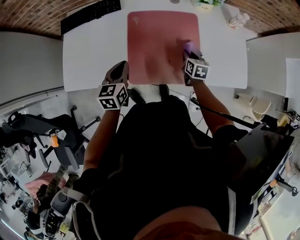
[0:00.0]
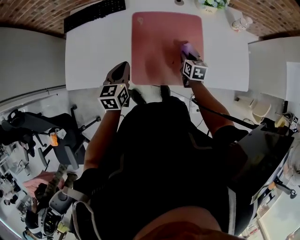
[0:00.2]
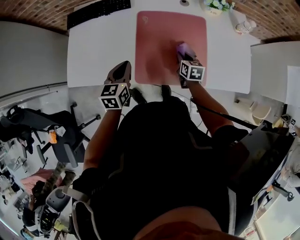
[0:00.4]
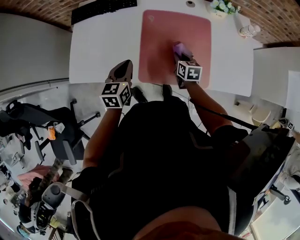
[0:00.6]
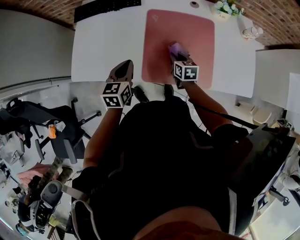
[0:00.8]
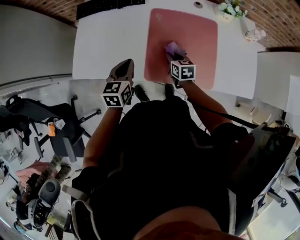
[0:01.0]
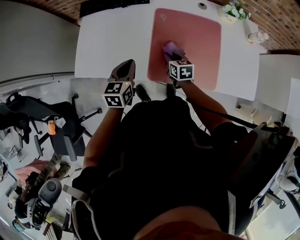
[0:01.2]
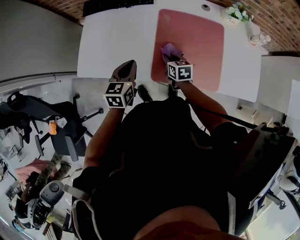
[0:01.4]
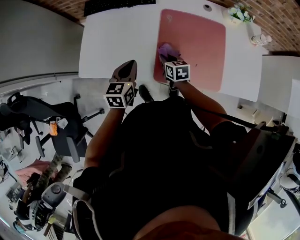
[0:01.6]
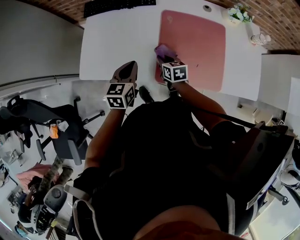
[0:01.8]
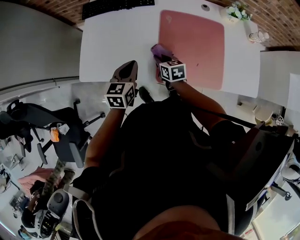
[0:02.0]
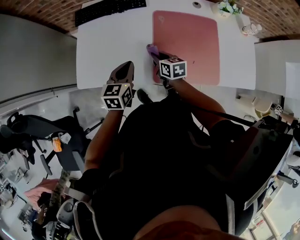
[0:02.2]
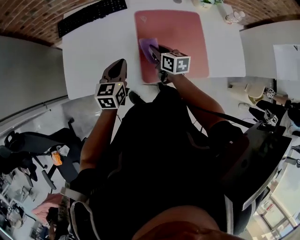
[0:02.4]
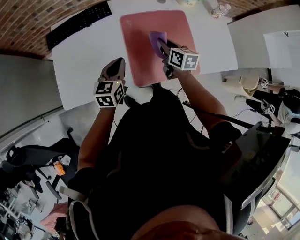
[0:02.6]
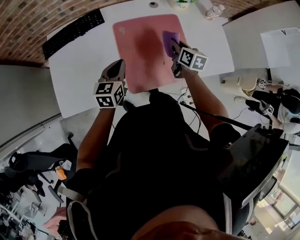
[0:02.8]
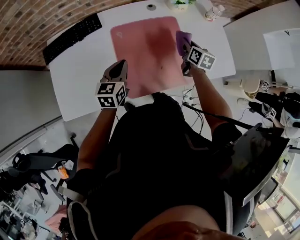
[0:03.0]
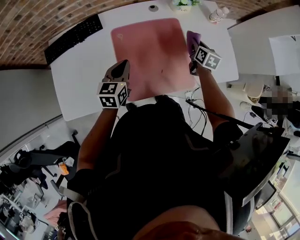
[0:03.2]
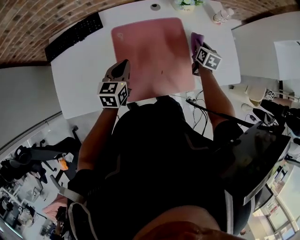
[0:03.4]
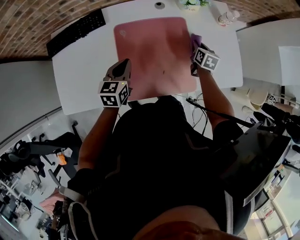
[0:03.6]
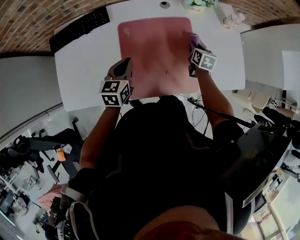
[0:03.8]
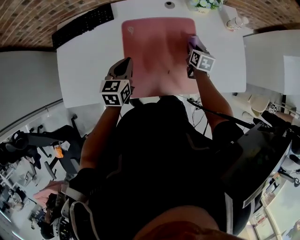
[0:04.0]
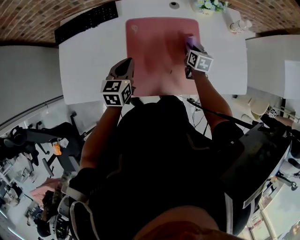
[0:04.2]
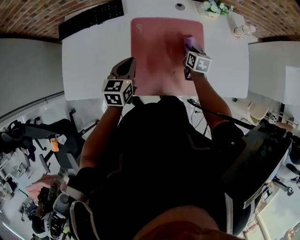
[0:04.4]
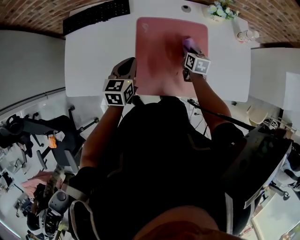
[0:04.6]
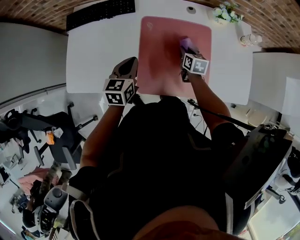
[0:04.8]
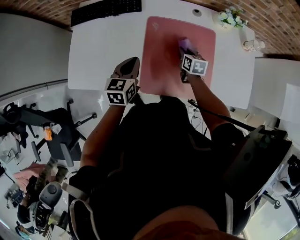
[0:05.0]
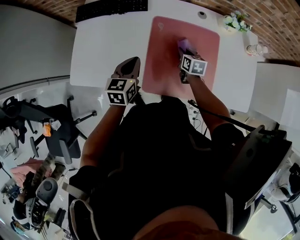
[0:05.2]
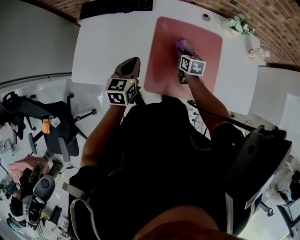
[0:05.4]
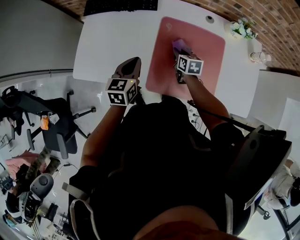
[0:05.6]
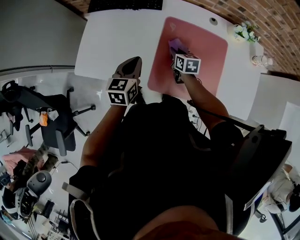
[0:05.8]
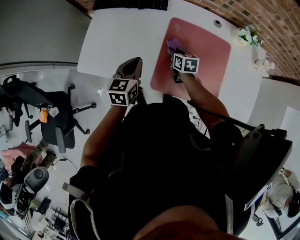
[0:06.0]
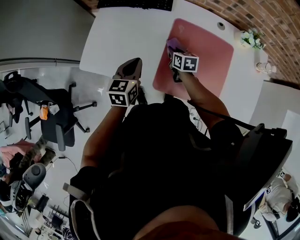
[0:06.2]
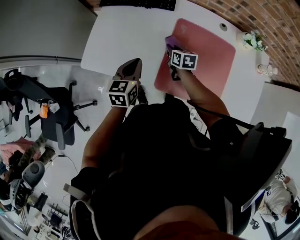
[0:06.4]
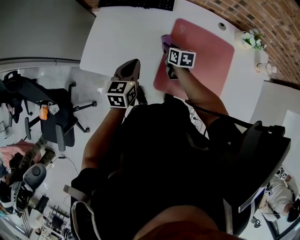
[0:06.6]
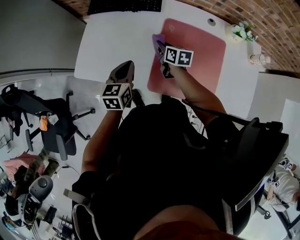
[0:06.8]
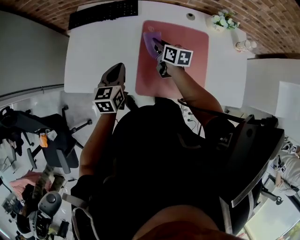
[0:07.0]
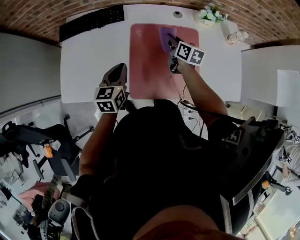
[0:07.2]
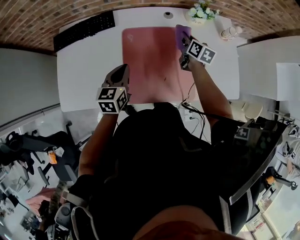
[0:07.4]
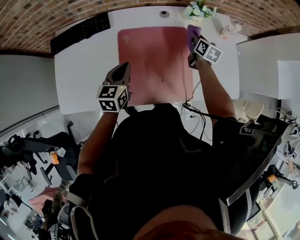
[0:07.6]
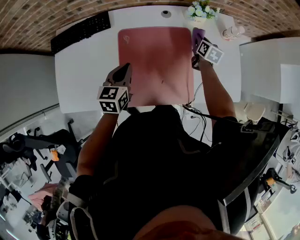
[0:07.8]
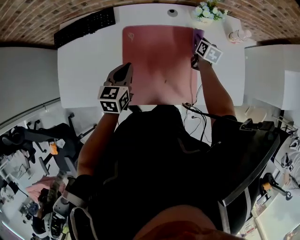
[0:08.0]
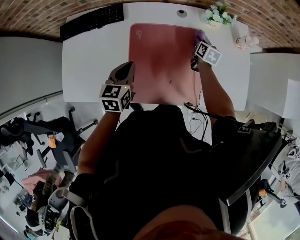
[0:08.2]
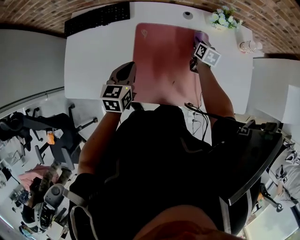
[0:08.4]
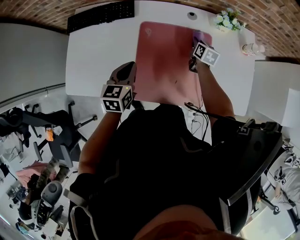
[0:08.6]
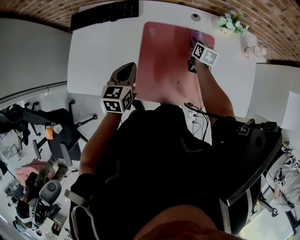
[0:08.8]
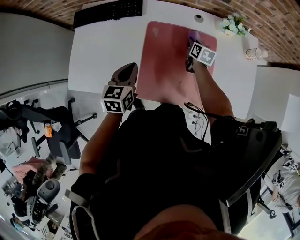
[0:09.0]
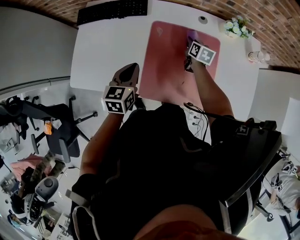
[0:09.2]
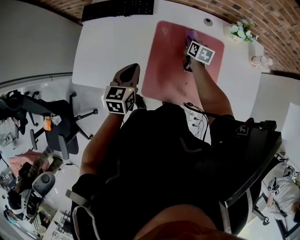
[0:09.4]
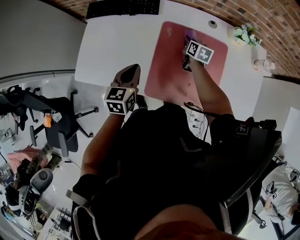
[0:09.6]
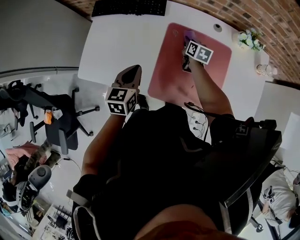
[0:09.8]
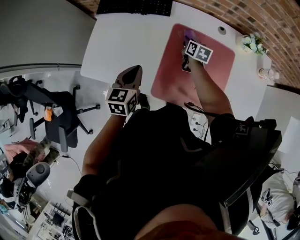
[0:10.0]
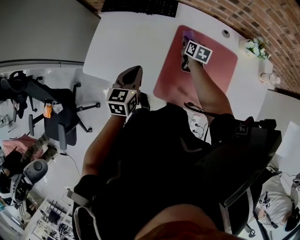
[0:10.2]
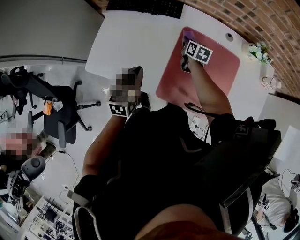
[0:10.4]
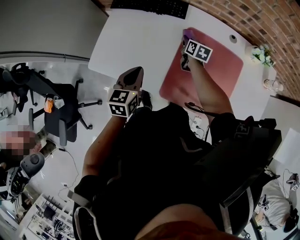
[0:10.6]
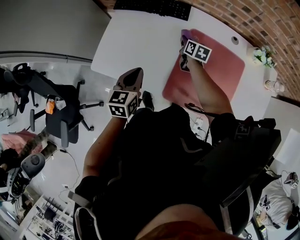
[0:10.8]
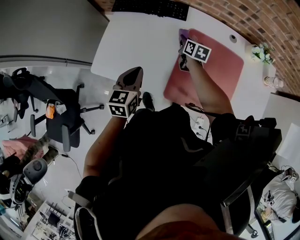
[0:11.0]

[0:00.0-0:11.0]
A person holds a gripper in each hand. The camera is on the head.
0:00.0 to 0:01.6: The left gripper moves to the left, about 10 cm, while the right gripper heads to the left, covering approximately 25 cm, and rotates approximately 20 degrees.
0:01.6 to 0:03.2: The right gripper ends up about 40 cm from where it was, and turns by approximately 40 degrees, while the left gripper shifts by about 20 cm, and changes its angle by roughly 20 degrees.
0:03.2 to 0:04.8: The right gripper is displaced to the left by about 20 cm, and turns by approximately 30 degrees. Meanwhile the left gripper moves to the left, about 5 cm.
0:04.8 to 0:06.2: The left gripper is displaced to the left by about 10 cm, while the right gripper is displaced to the left by roughly 20 cm, and changes its angle by approximately 20 degrees.
0:06.2 to 0:07.8: The right gripper moves about 40 cm, and swivels about 40 degrees, while the left gripper ends up some 20 cm from where it was, and rotates about 20 degrees.
0:07.8 to 0:09.4: The left gripper shifts roughly 10 cm to the left and backward, while the right gripper shifts some 25 cm to the left, and changes its angle by roughly 20 degrees.
0:09.4 to 0:11.0: The right gripper heads to the left, covering roughly 20 cm, while the left gripper heads to the left, covering approximately 10 cm.

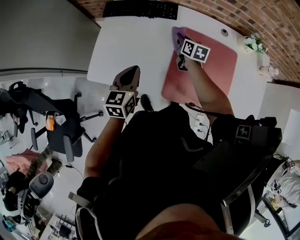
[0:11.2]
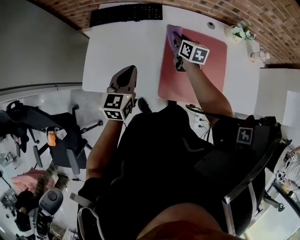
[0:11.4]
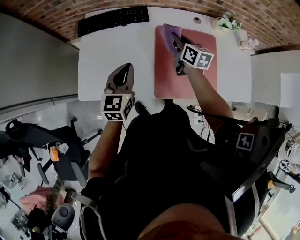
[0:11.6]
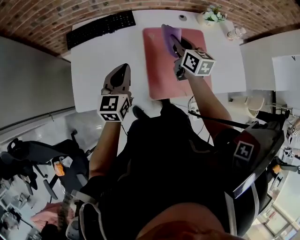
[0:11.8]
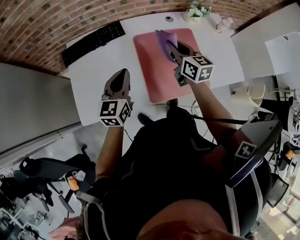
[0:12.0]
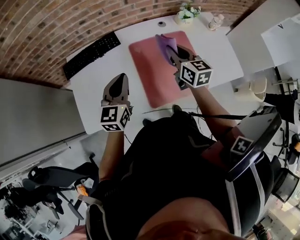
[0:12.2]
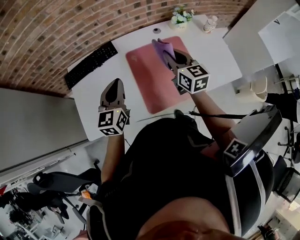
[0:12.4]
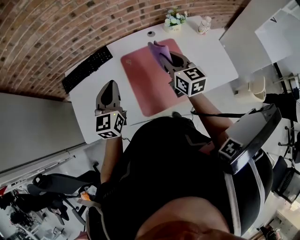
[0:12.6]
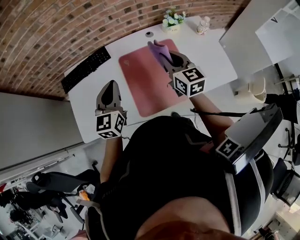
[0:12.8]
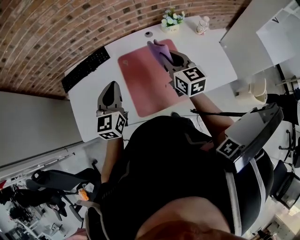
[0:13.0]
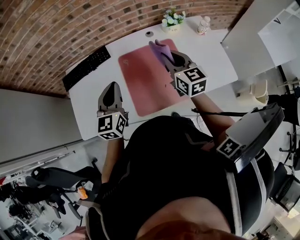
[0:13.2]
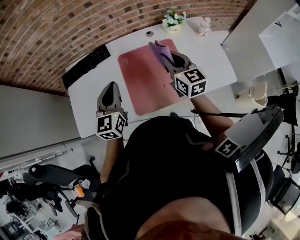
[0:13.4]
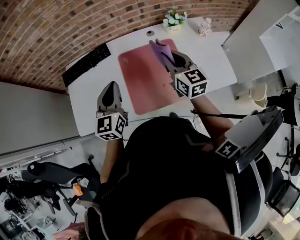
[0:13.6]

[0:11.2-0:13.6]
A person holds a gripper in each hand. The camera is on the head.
0:11.2 to 0:12.4: The right gripper travels upward, to the right and backward by some 30 cm, and turns by approximately 30 degrees. The left gripper travels upward, to the right and forward by about 15 cm, and swivels roughly 30 degrees.
0:12.4 to 0:13.6: Both grippers travel together to the right, some 5 cm.

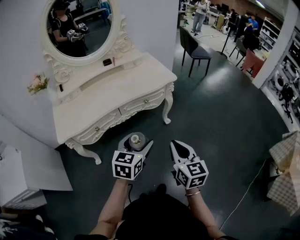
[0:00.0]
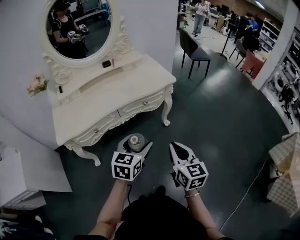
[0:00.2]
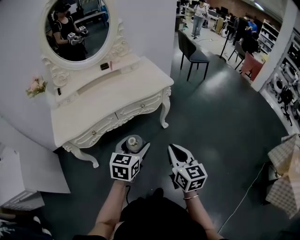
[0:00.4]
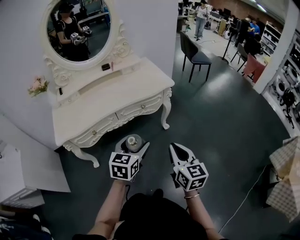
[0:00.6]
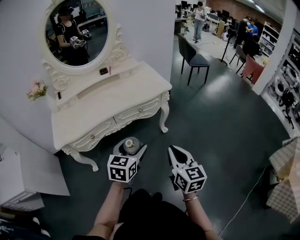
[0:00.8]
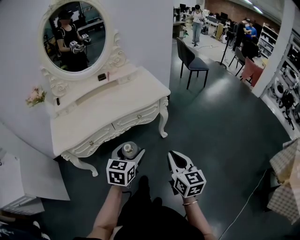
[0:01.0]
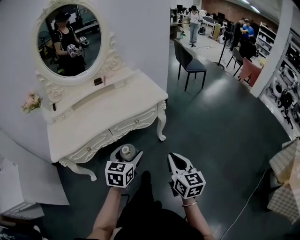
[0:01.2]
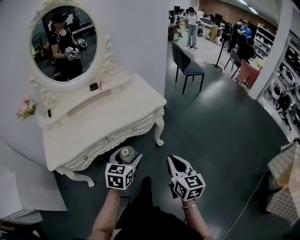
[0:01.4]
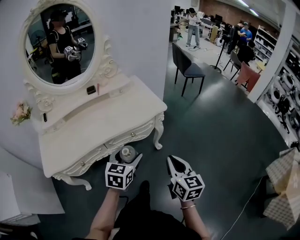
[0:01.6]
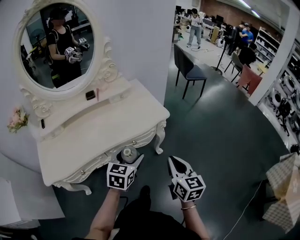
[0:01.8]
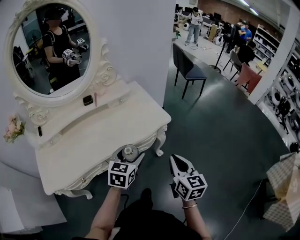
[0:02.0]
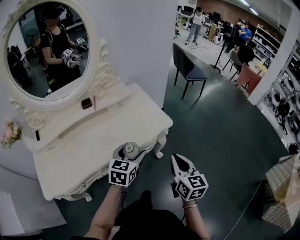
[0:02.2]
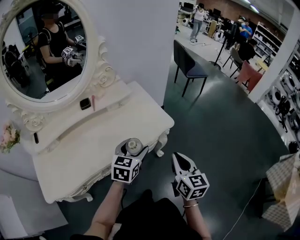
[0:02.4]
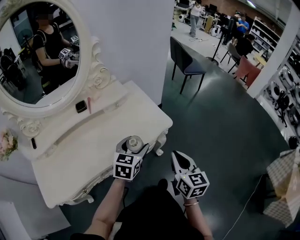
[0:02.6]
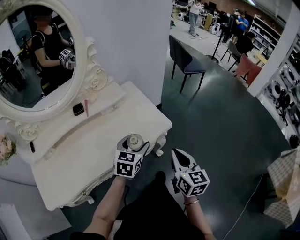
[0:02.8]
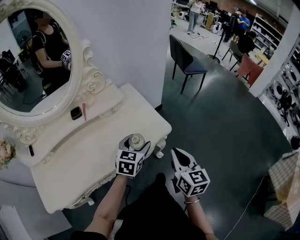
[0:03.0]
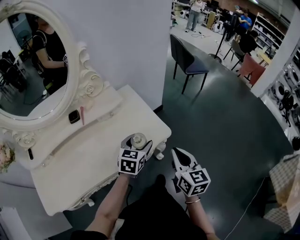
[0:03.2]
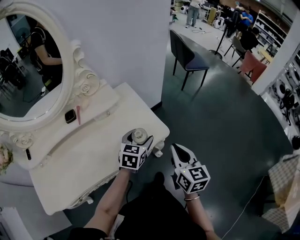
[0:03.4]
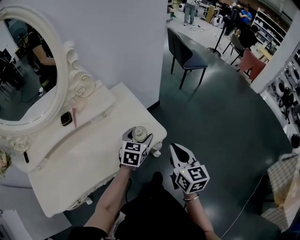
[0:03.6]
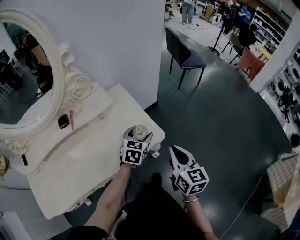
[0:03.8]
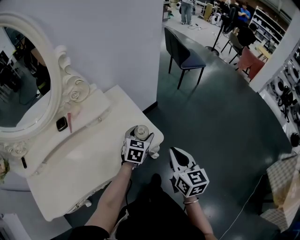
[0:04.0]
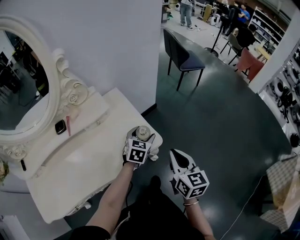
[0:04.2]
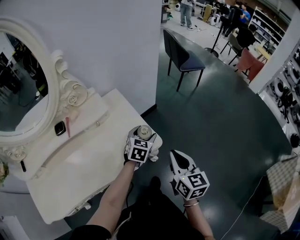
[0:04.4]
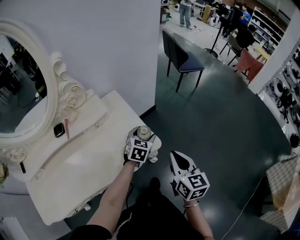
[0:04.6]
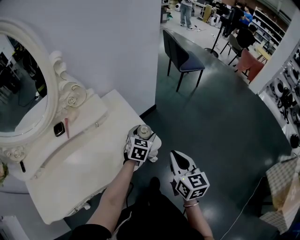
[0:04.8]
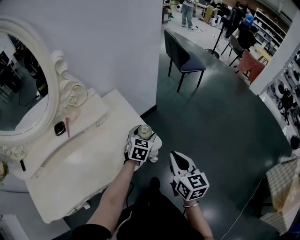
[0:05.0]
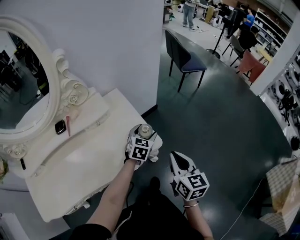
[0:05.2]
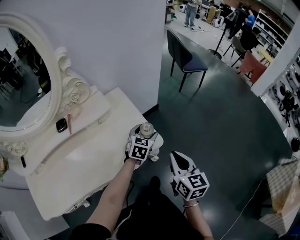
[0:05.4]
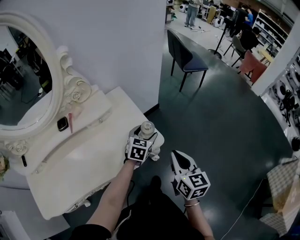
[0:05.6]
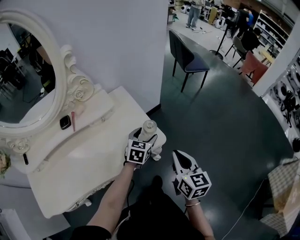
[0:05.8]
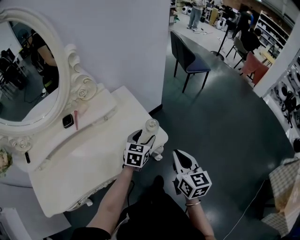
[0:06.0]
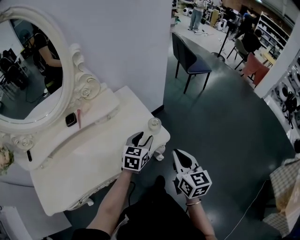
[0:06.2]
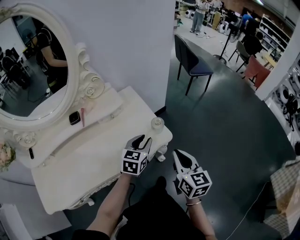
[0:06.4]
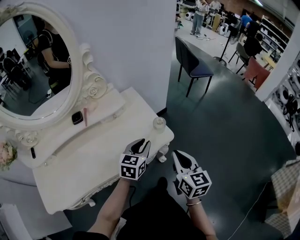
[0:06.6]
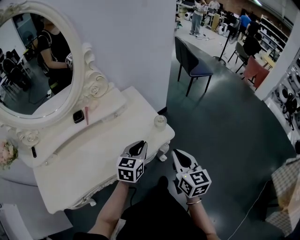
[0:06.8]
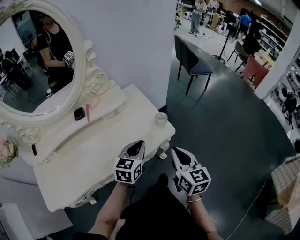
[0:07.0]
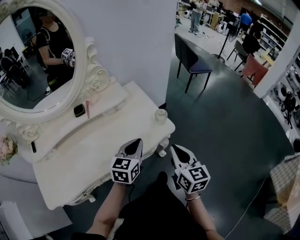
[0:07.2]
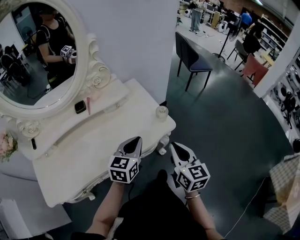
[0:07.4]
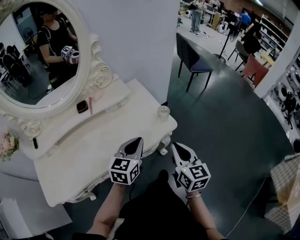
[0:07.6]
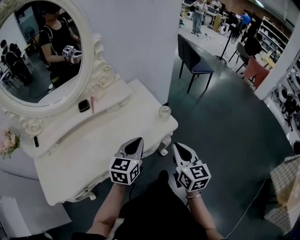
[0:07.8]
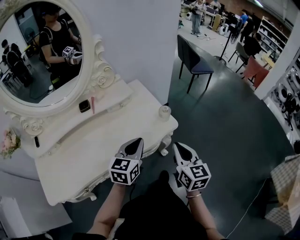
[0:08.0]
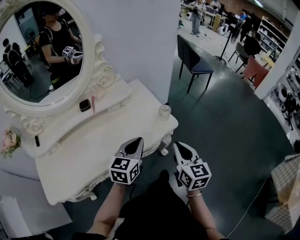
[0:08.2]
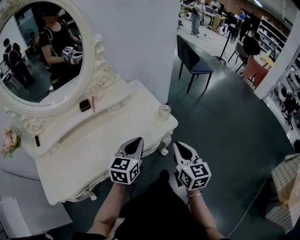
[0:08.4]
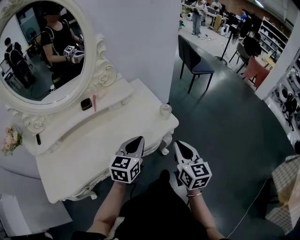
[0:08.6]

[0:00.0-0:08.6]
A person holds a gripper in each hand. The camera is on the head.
0:00.0 to 0:01.4: The right gripper heads forward and to the right, covering roughly 10 cm, while the left gripper goes about 10 cm forward.
0:01.4 to 0:02.8: The two grippers go approximately 30 cm forward.
0:02.8 to 0:04.4: The left gripper moves forward, to the right and downward, roughly 25 cm. The right gripper shifts approximately 15 cm forward and to the right.
0:04.4 to 0:05.8: The grippers stay close to where they were, moving slightly.
0:05.8 to 0:07.2: The right gripper is displaced to the left and backward by approximately 10 cm. Meanwhile the left gripper is displaced backward, to the left and upward by approximately 20 cm, and closes up.
0:07.2 to 0:08.6: There are only small adjustments of the grippers.

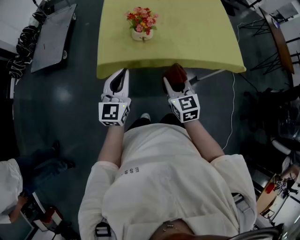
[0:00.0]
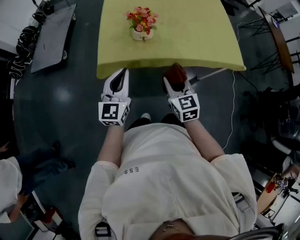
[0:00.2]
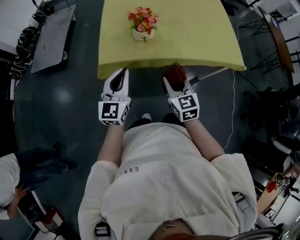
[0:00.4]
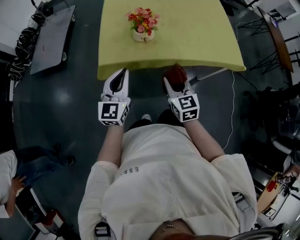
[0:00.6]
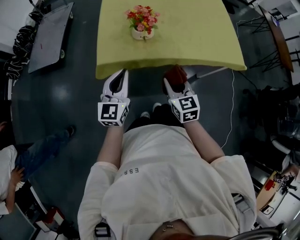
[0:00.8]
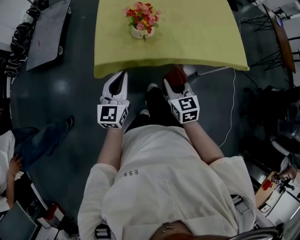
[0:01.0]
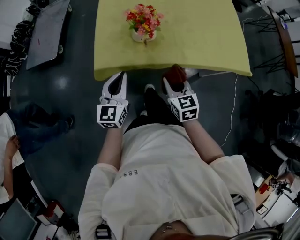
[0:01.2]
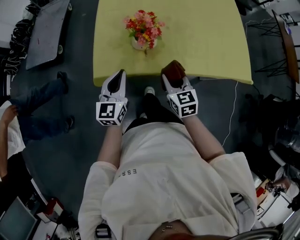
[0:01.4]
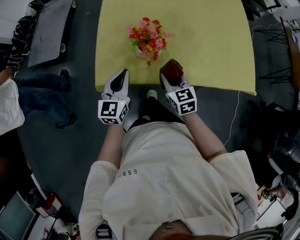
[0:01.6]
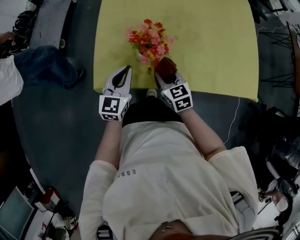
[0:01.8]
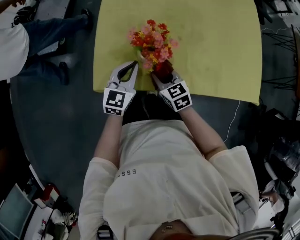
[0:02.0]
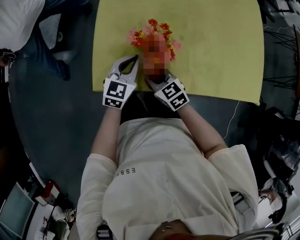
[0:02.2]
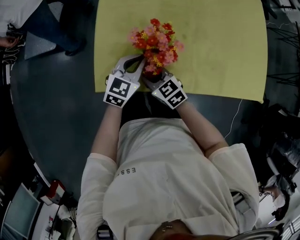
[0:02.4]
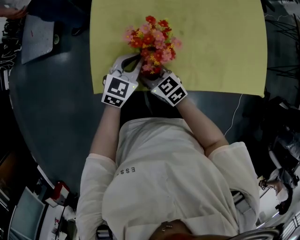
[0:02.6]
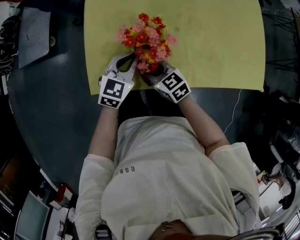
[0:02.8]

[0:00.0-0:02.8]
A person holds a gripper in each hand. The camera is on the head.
0:00.0 to 0:01.4: Both grippers travel together forward and downward, some 15 cm.
0:01.4 to 0:02.8: The left gripper shifts about 15 cm forward, downward and to the right, and changes its angle by roughly 30 degrees, while the right gripper heads forward, to the left and downward, covering roughly 15 cm, and swivels about 30 degrees.
